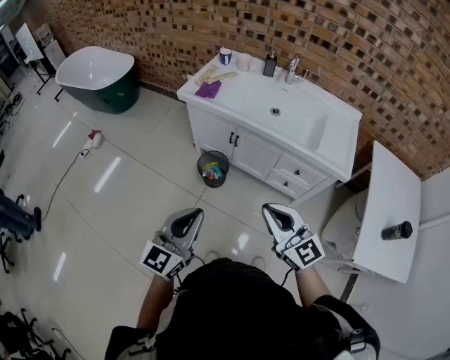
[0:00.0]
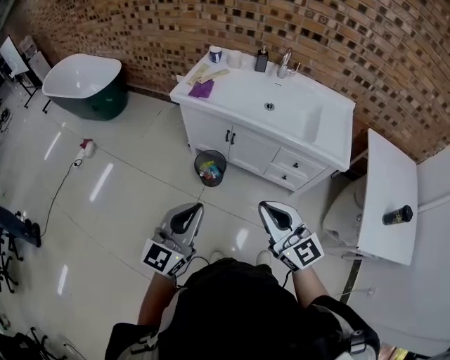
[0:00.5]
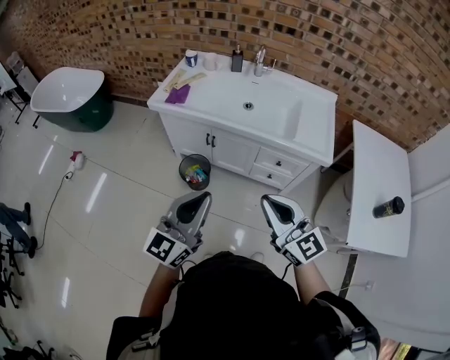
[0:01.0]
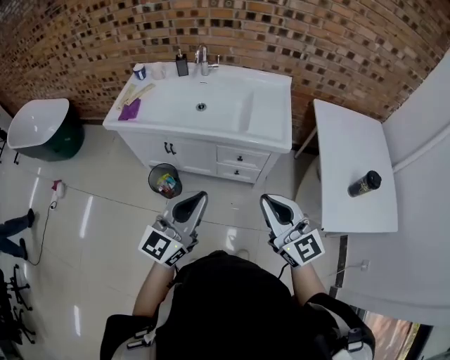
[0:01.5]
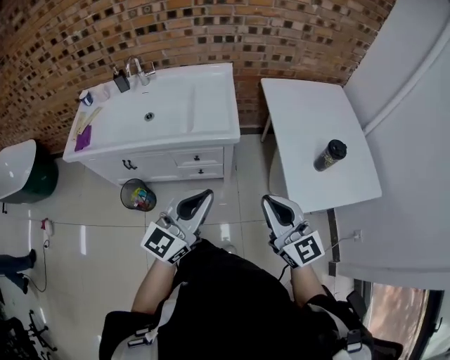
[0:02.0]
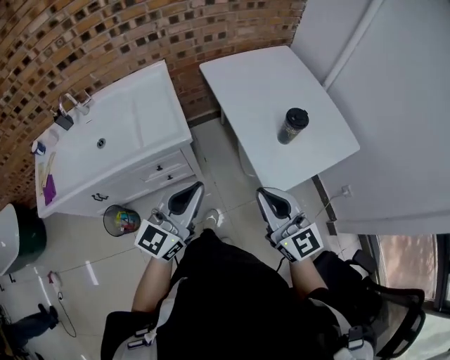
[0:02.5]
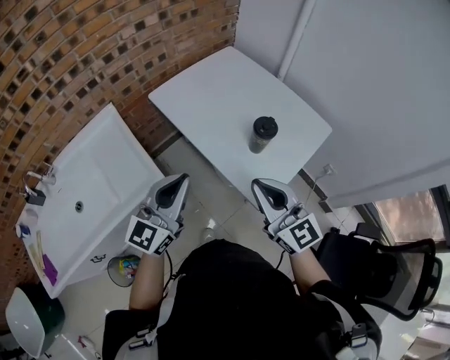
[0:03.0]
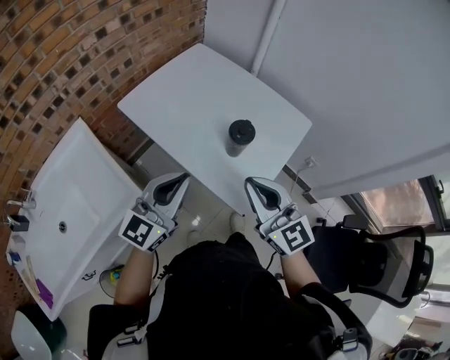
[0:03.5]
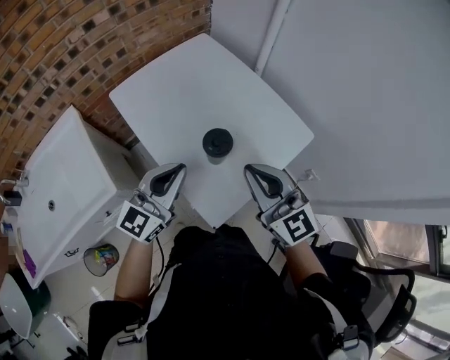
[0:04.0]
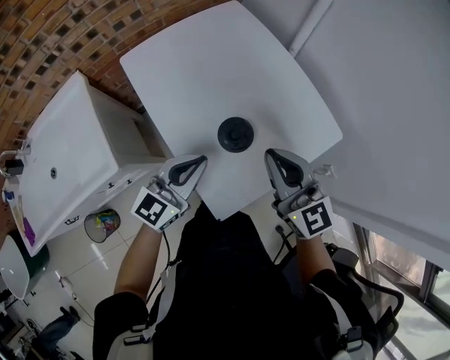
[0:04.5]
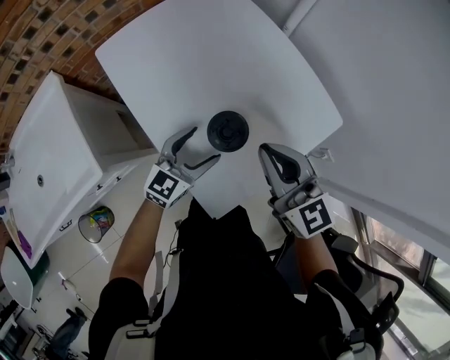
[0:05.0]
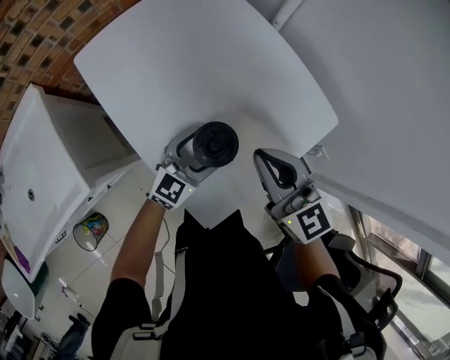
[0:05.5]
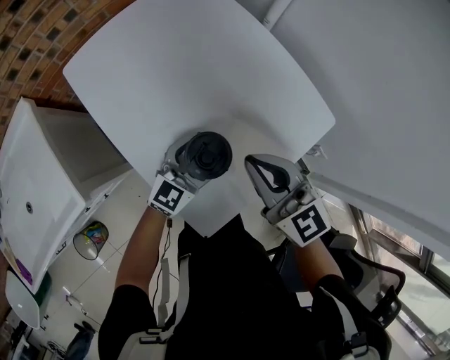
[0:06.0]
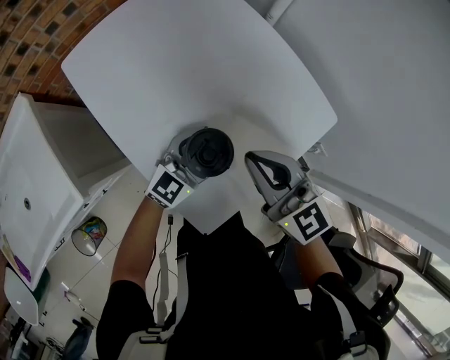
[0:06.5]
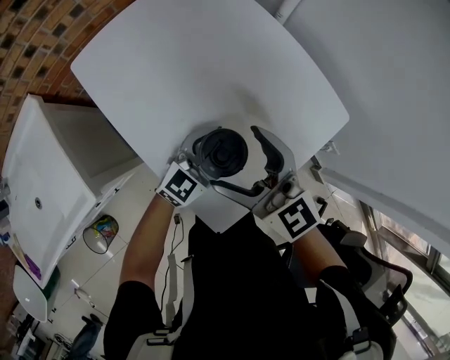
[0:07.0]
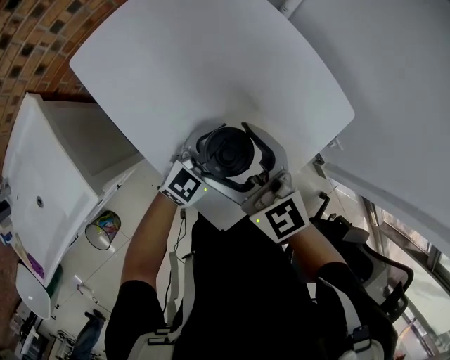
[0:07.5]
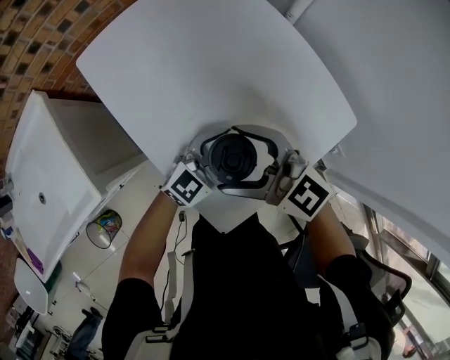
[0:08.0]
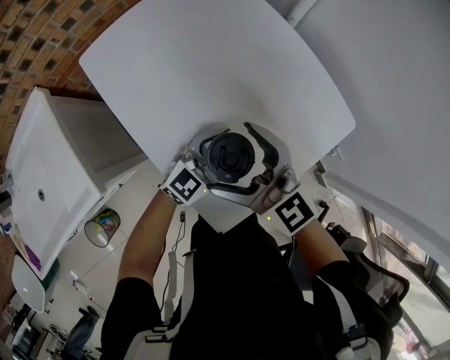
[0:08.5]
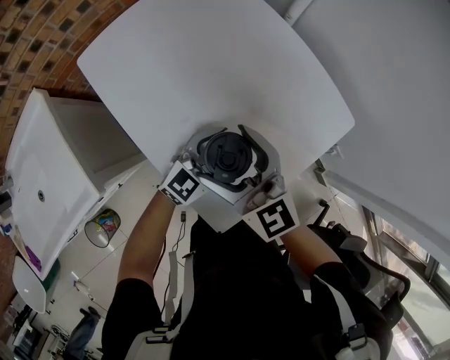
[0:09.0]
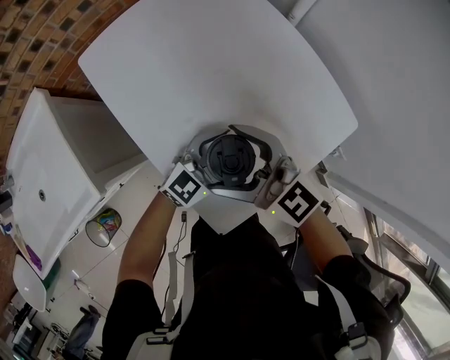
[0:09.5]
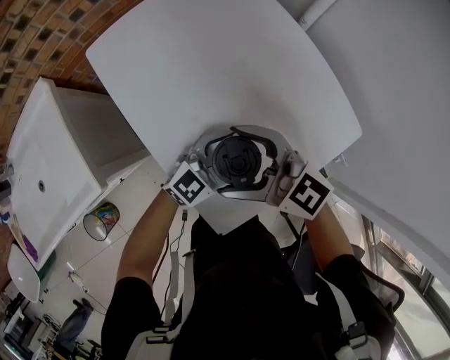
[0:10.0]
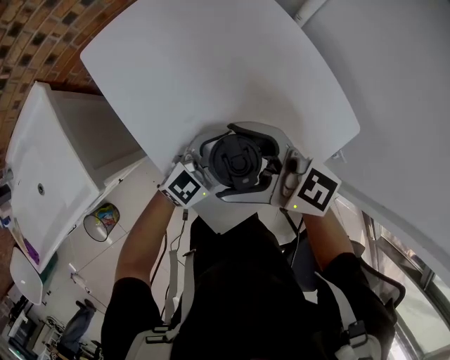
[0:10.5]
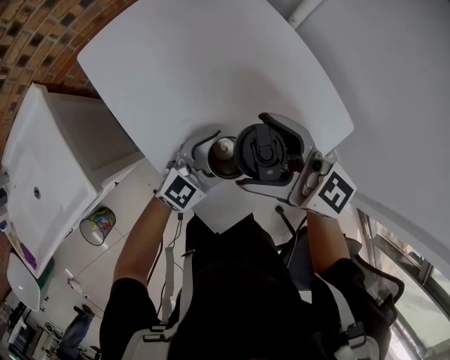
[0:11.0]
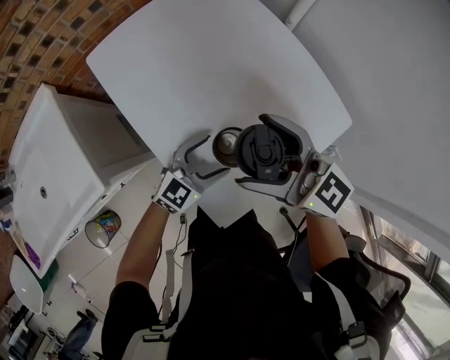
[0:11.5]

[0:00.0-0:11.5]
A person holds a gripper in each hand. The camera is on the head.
0:00.0 to 0:02.0: The right gripper moves about 35 cm, and changes its angle by about 40 degrees, while the left gripper ends up approximately 40 cm from where it was, and rotates some 40 degrees.
0:02.0 to 0:04.0: The right gripper moves about 35 cm, and swivels about 30 degrees. Meanwhile the left gripper shifts by about 40 cm, and swivels about 30 degrees.
0:04.0 to 0:06.0: The right gripper goes approximately 15 cm downward and forward, while the left gripper goes roughly 25 cm downward and to the right, and opens.
0:06.0 to 0:07.5: The right gripper moves to the left, some 10 cm, and opens.
0:07.5 to 0:09.5: The right gripper turns by roughly 20 degrees.
0:09.5 to 0:11.5: The right gripper heads upward, covering about 5 cm; the left gripper ends up approximately 5 cm from where it was.

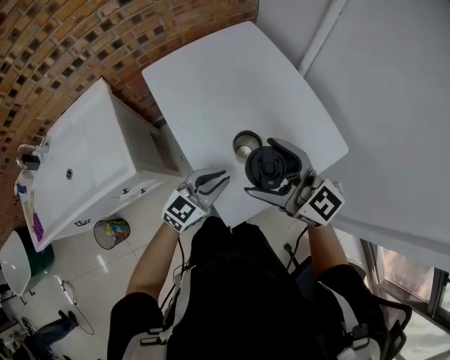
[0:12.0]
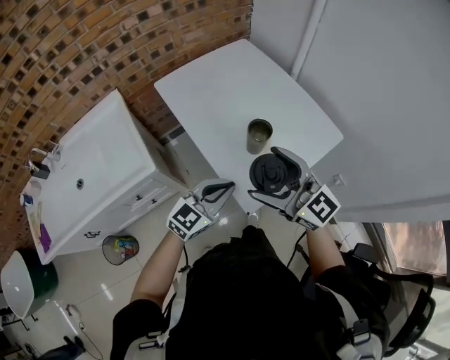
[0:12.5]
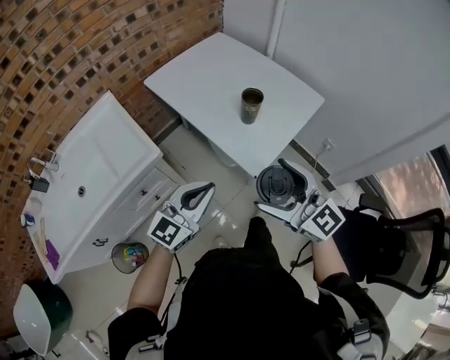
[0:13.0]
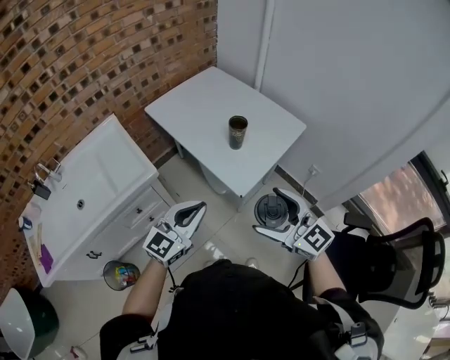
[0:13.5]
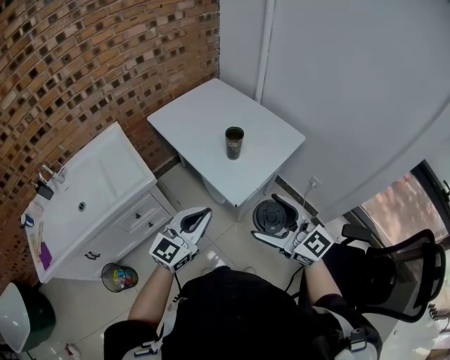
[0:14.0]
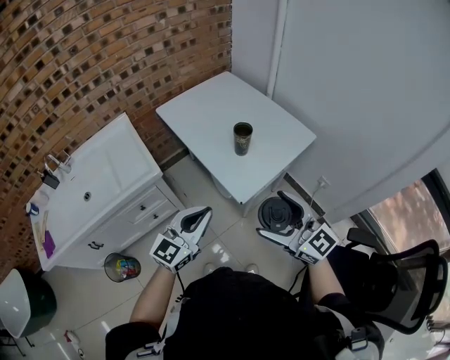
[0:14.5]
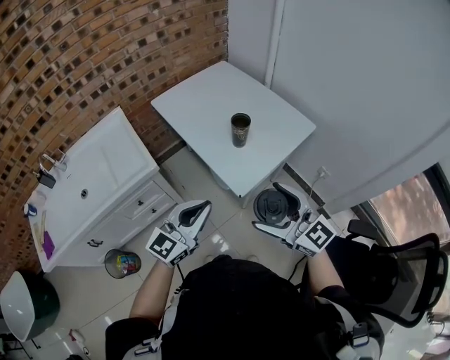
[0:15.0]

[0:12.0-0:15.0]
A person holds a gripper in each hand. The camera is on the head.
0:12.0 to 0:13.5: The right gripper is displaced backward by some 35 cm, and turns by about 20 degrees, while the left gripper is displaced backward, upward and to the left by approximately 35 cm.
0:13.5 to 0:15.0: The grippers stay close to where they were, moving slightly.

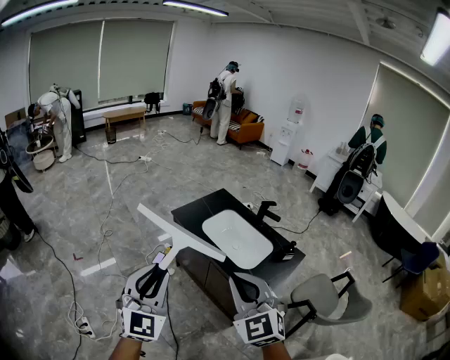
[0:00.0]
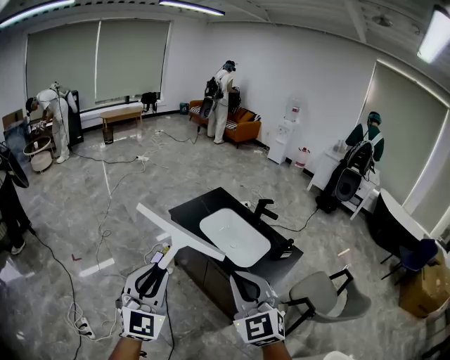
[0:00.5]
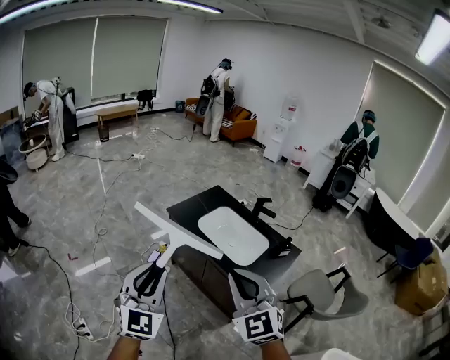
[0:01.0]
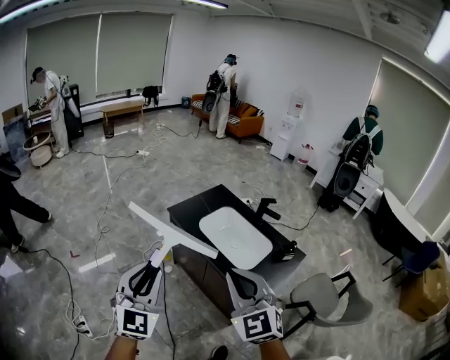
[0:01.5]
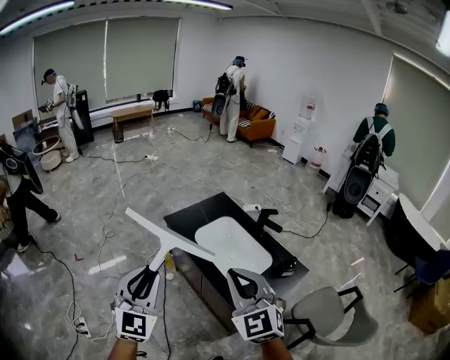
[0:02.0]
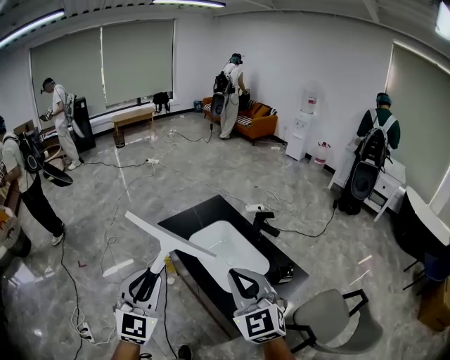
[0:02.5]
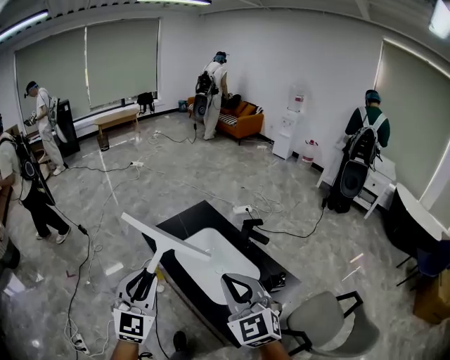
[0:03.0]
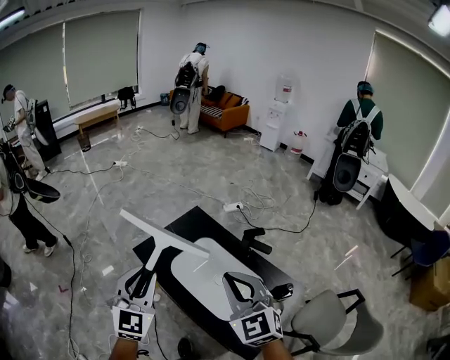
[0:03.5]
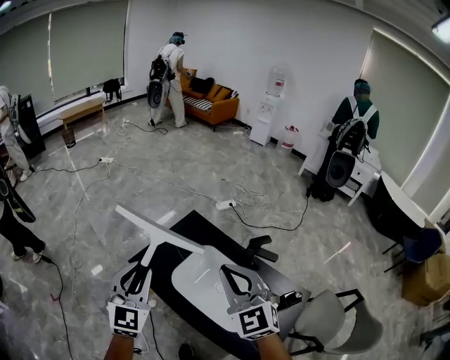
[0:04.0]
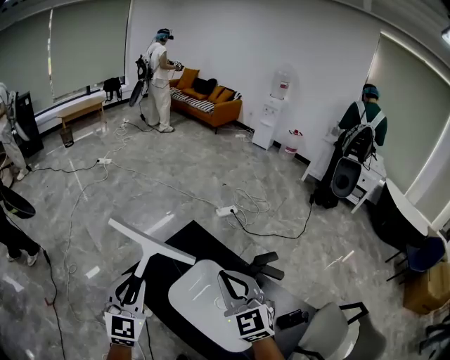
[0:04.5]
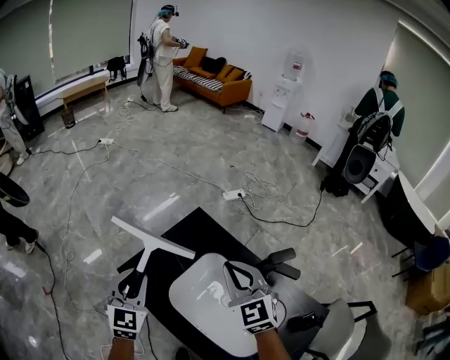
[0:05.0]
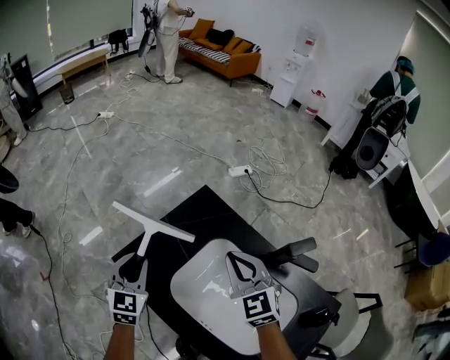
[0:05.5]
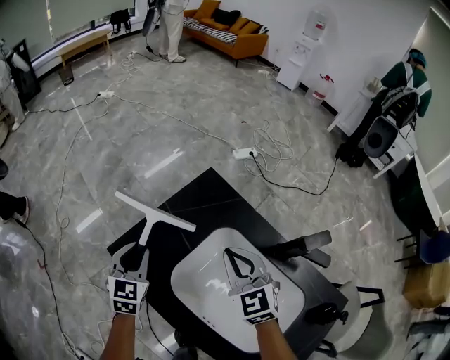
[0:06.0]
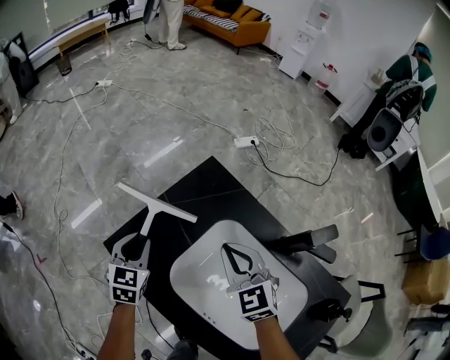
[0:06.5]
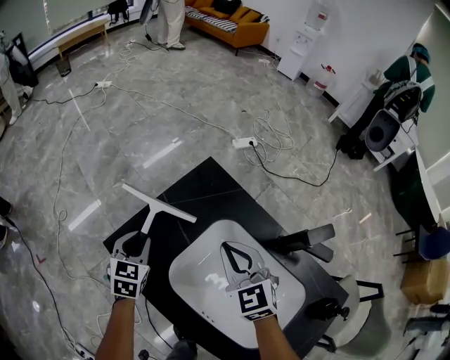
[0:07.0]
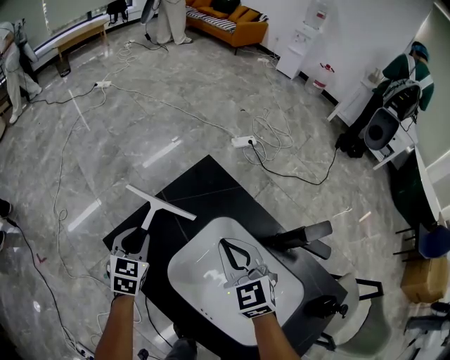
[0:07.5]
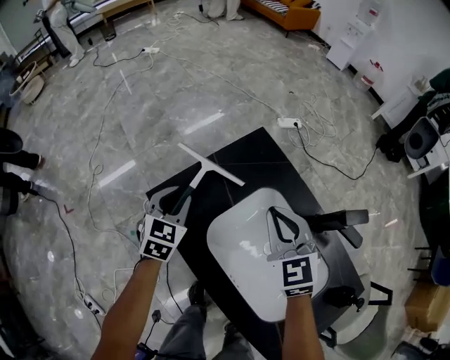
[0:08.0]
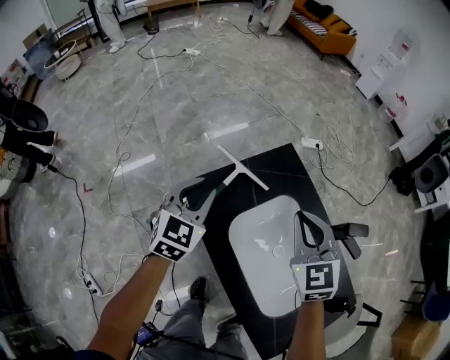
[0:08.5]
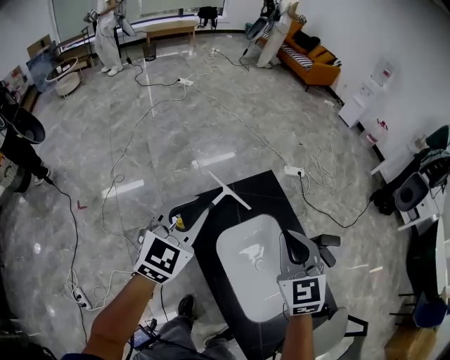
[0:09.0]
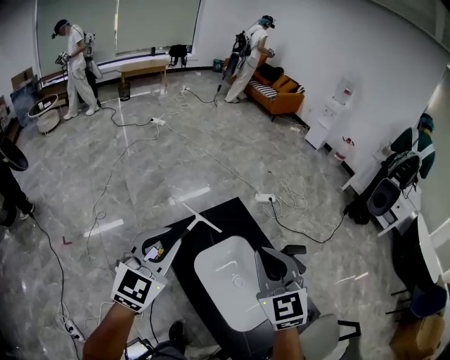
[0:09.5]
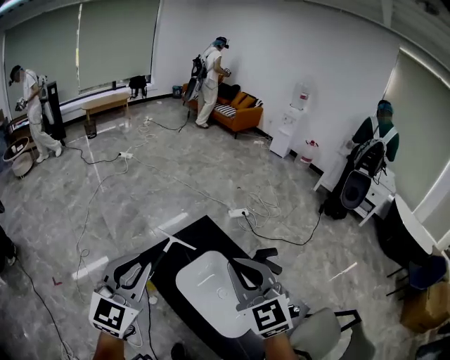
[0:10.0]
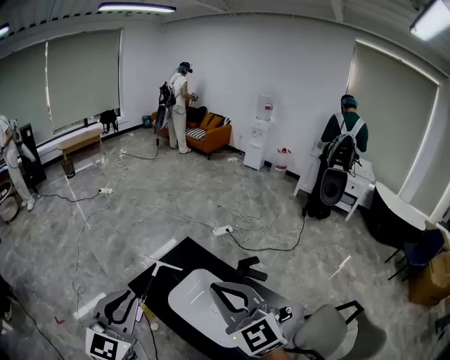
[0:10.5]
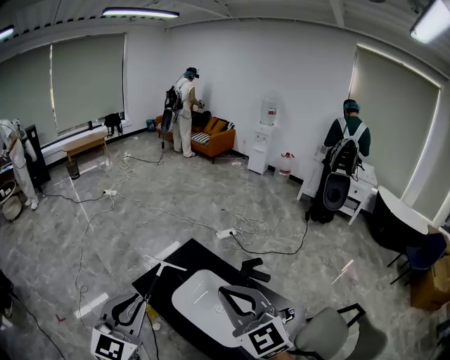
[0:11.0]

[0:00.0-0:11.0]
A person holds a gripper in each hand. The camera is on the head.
0:00.0 to 0:02.0: Both grippers move forward and to the right, roughly 15 cm.
0:02.0 to 0:03.5: Both grippers move forward, roughly 30 cm.
0:03.5 to 0:05.5: Both grippers travel together forward and downward, some 50 cm. The left gripper changes its angle by some 20 degrees.
0:05.5 to 0:07.5: The left gripper heads downward, covering some 10 cm. The right gripper shifts approximately 10 cm downward.
0:07.5 to 0:09.0: Both grippers travel together upward, approximately 30 cm. The left gripper turns by roughly 20 degrees.
0:09.0 to 0:11.0: The two grippers go some 30 cm backward and upward.

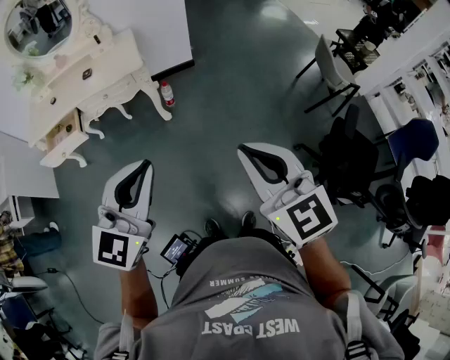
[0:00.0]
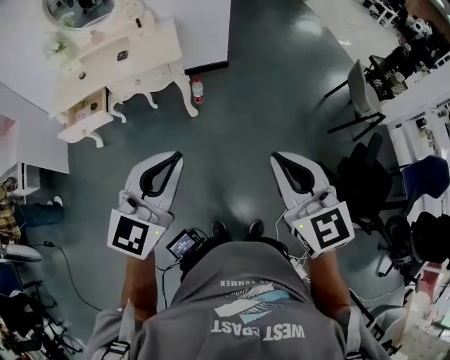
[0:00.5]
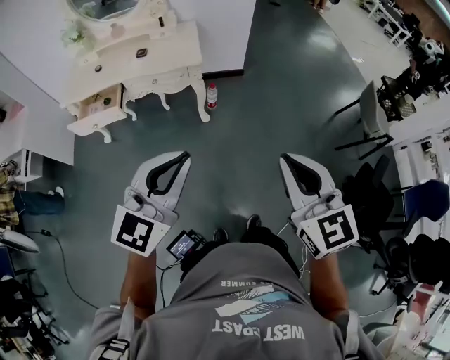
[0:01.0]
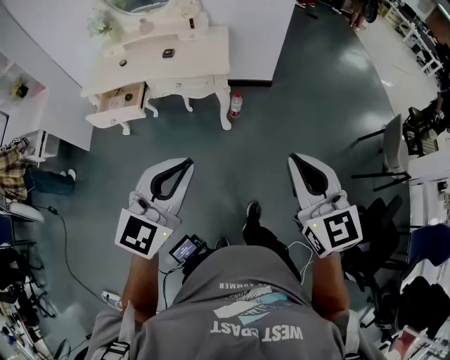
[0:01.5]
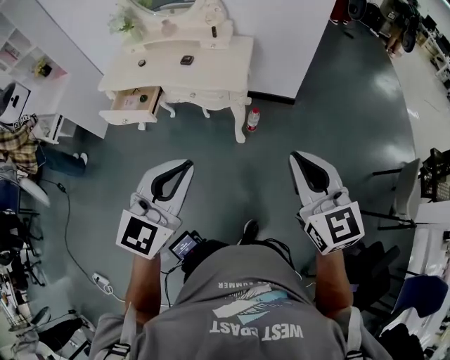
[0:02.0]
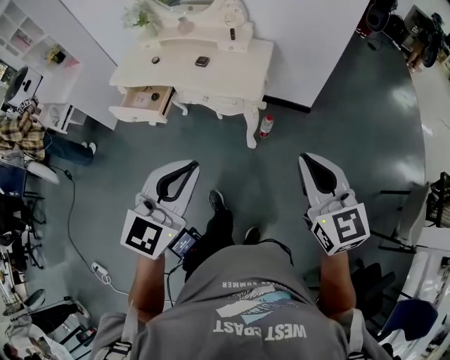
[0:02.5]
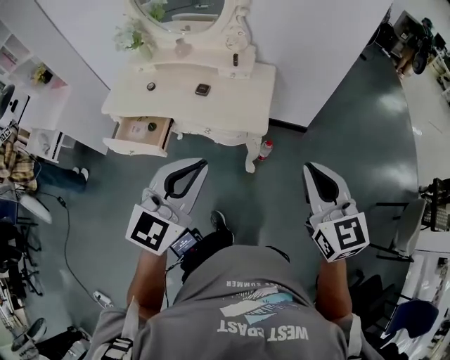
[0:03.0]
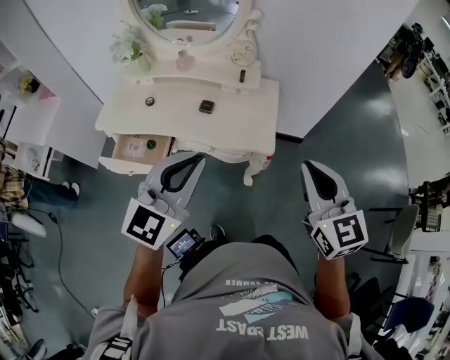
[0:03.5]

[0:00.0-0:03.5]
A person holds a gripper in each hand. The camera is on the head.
0:00.0 to 0:02.0: Both grippers move forward, roughly 25 cm. The left gripper rotates some 20 degrees.
0:02.0 to 0:03.5: The two grippers go approximately 35 cm forward and to the left.
